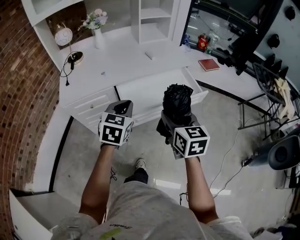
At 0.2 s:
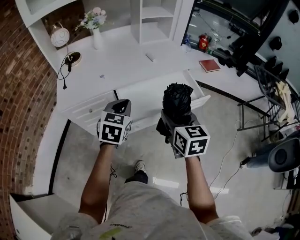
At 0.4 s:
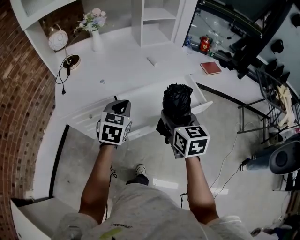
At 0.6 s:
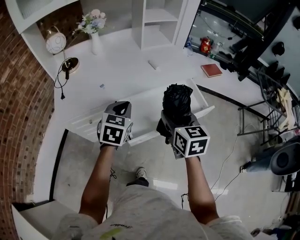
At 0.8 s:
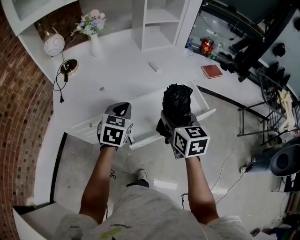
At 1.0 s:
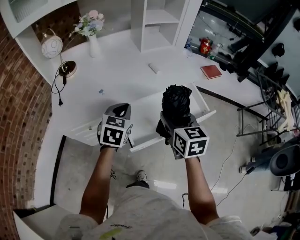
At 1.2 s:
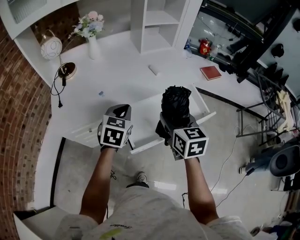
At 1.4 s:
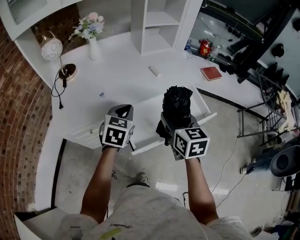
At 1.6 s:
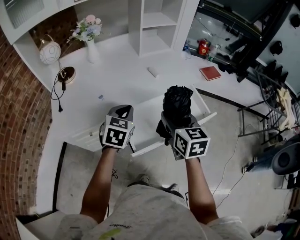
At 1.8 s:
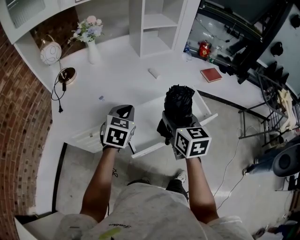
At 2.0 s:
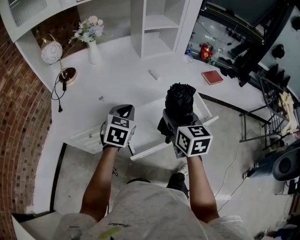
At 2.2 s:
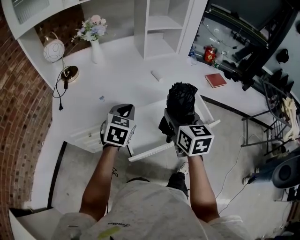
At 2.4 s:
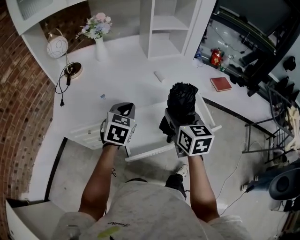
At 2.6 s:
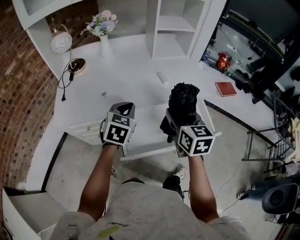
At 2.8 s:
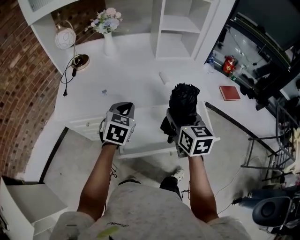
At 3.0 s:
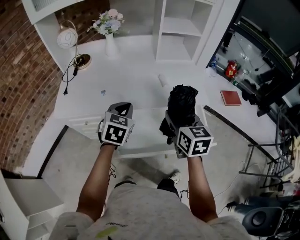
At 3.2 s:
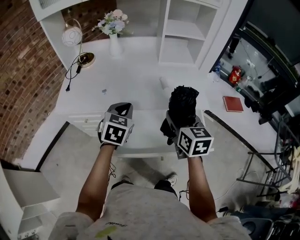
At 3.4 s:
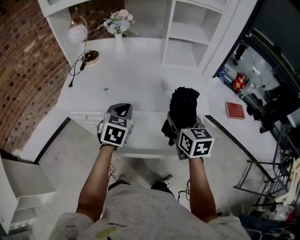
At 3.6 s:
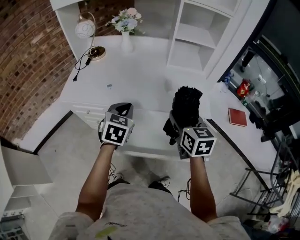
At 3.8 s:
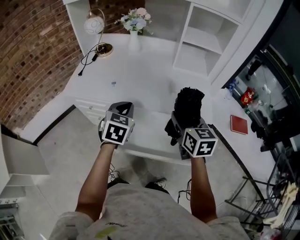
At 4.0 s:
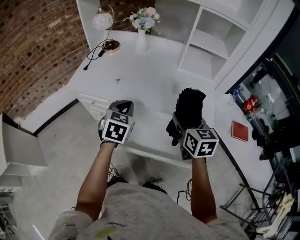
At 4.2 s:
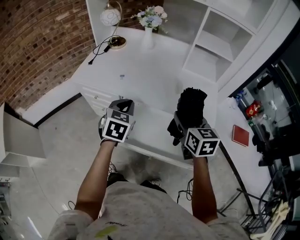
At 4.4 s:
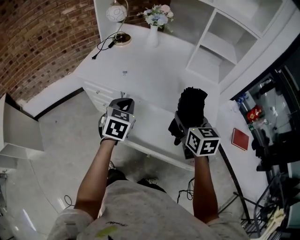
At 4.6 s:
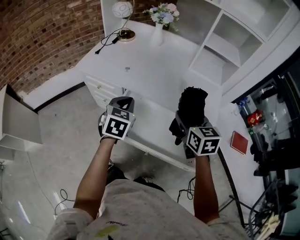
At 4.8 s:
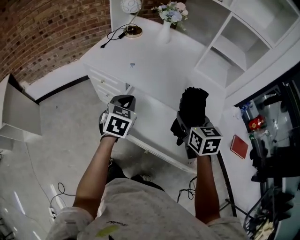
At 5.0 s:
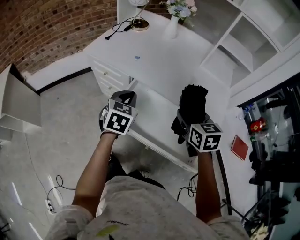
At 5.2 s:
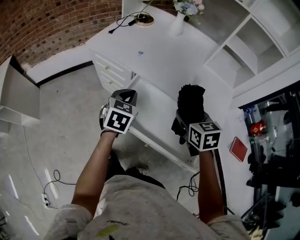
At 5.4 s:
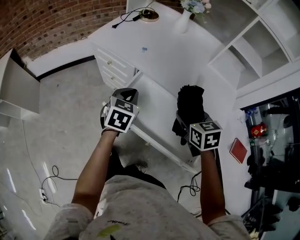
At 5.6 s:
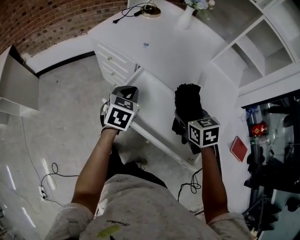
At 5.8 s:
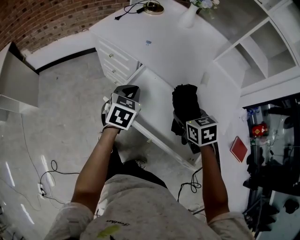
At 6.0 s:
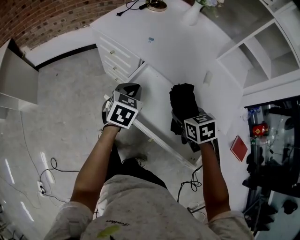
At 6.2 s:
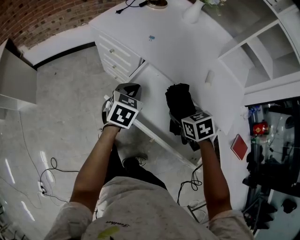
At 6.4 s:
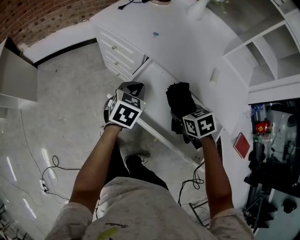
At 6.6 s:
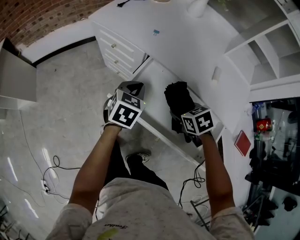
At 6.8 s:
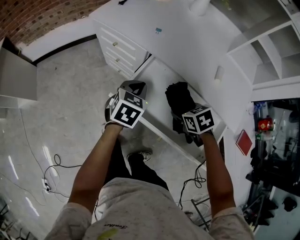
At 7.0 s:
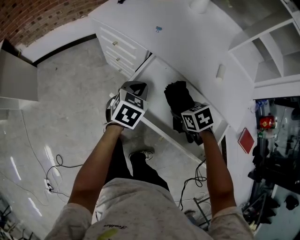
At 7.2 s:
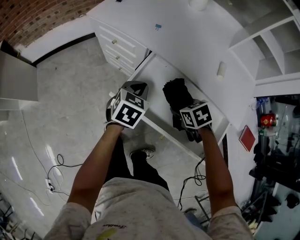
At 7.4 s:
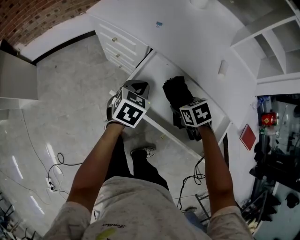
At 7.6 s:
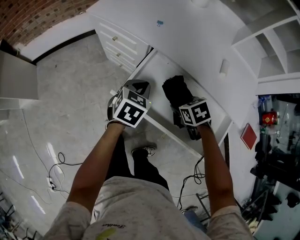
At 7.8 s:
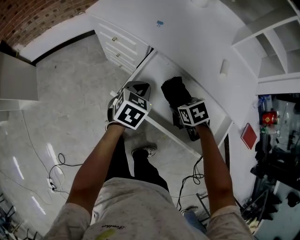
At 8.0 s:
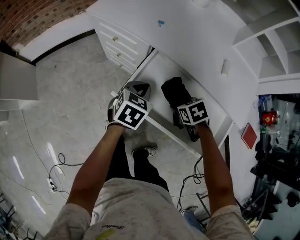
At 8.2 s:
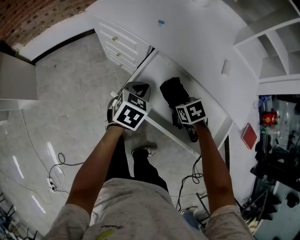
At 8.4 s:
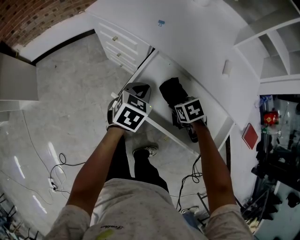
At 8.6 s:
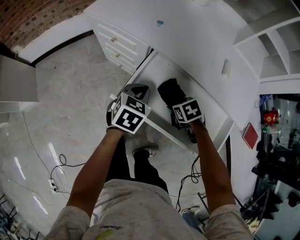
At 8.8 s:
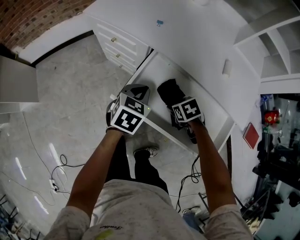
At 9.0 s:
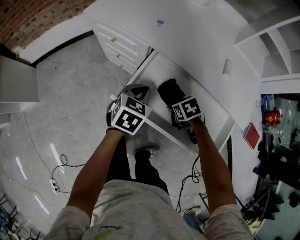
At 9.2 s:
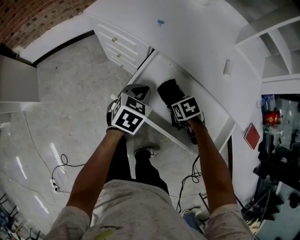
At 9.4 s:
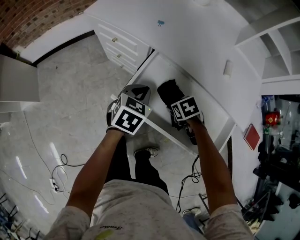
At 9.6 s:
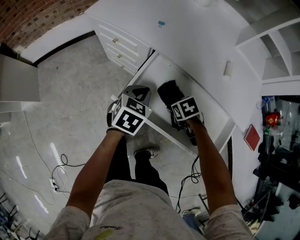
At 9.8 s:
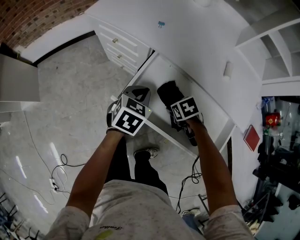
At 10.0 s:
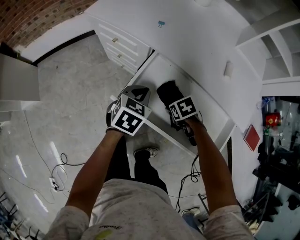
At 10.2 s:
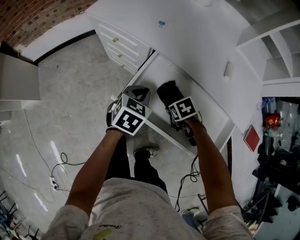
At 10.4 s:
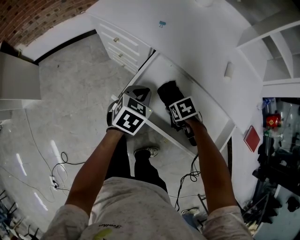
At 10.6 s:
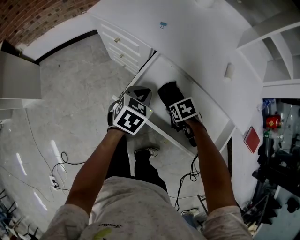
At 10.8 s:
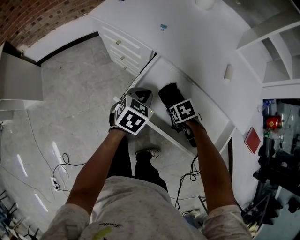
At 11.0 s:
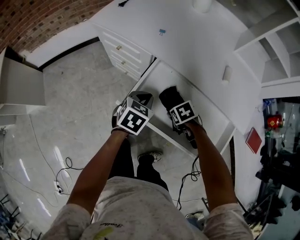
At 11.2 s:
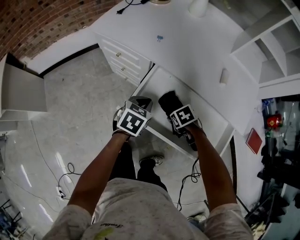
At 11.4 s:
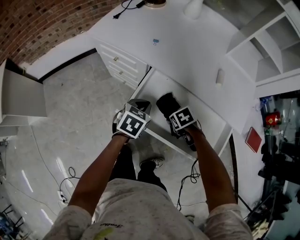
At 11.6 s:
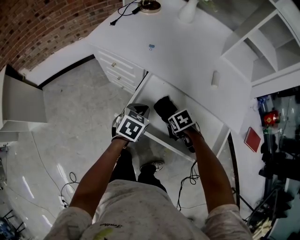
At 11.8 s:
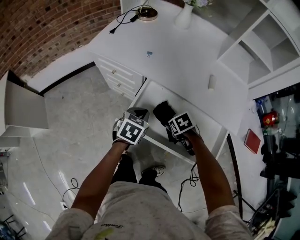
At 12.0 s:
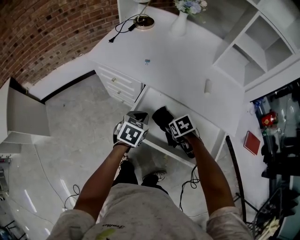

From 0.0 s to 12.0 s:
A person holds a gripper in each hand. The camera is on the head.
From 0.0 s to 1.6 s: Both grippers move forward, roughly 20 cm.
From 1.6 s to 3.0 s: The left gripper changes place by about 5 cm. Meanwhile the right gripper goes roughly 10 cm forward and to the right.
From 3.0 s to 4.4 s: The right gripper moves some 5 cm, and turns by some 30 degrees, while the left gripper rotates some 30 degrees.
From 4.4 s to 6.0 s: The left gripper heads downward, covering approximately 10 cm, while the right gripper heads downward and to the left, covering some 15 cm, and rotates about 40 degrees.
From 6.0 s to 7.6 s: The right gripper shifts some 10 cm downward. The left gripper travels downward by roughly 5 cm.
From 7.6 s to 9.0 s: The right gripper shifts roughly 5 cm downward.
From 9.0 s to 10.4 s: The grippers make only small movements.
From 10.4 s to 12.0 s: The right gripper shifts roughly 10 cm upward.

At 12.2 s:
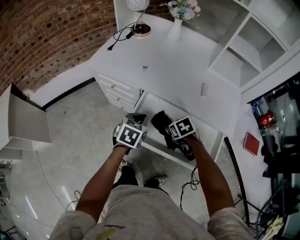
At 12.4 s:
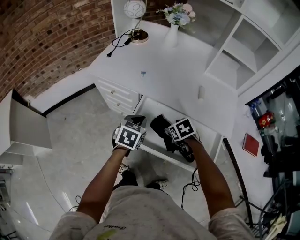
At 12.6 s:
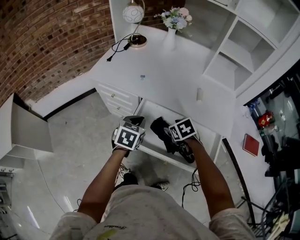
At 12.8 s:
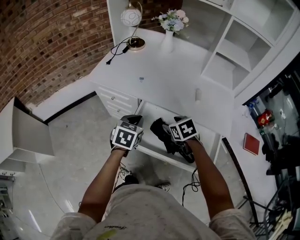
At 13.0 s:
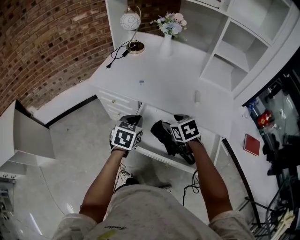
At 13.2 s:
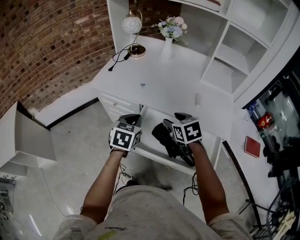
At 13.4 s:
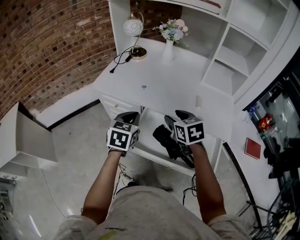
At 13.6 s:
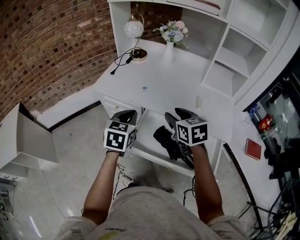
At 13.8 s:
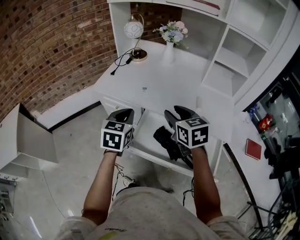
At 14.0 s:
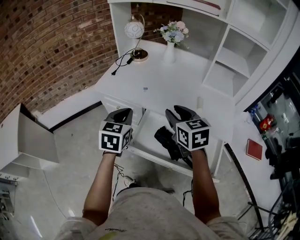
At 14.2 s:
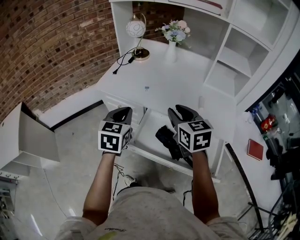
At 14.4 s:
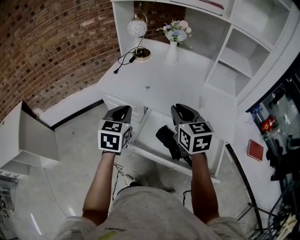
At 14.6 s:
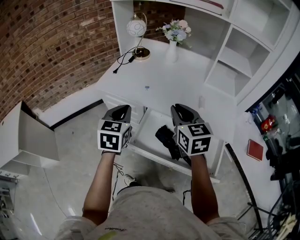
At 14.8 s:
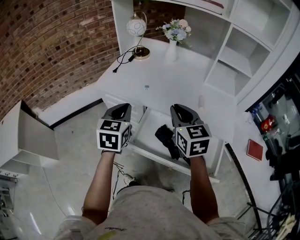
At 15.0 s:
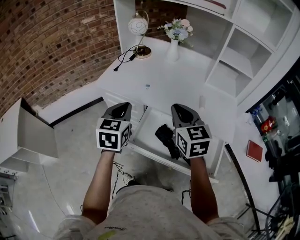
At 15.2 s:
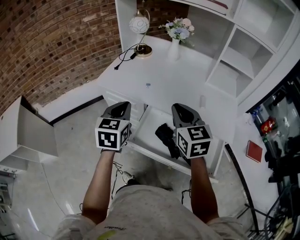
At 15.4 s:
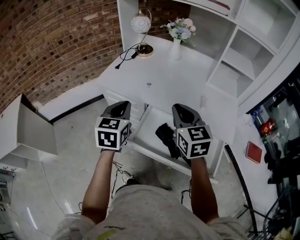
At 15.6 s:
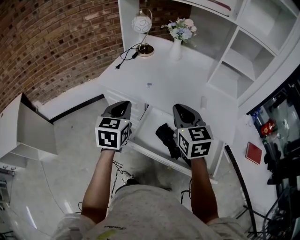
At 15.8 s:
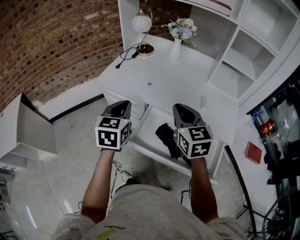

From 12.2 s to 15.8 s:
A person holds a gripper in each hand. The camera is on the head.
From 12.2 s to 14.0 s: The left gripper travels upward and to the left by some 20 cm, and rotates roughly 20 degrees. The right gripper travels upward by roughly 25 cm, angles its fingers upward, by some 40 degrees, and closes up.
From 14.0 s to 15.8 s: The right gripper closes.

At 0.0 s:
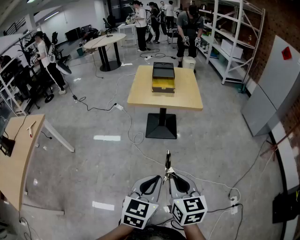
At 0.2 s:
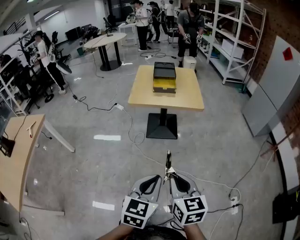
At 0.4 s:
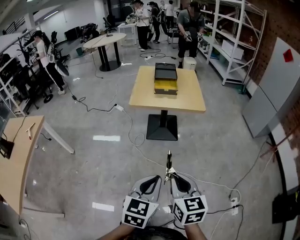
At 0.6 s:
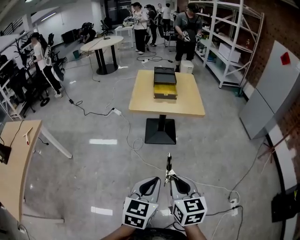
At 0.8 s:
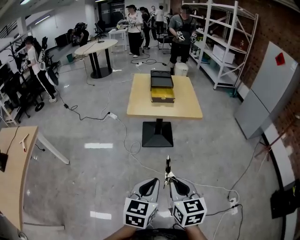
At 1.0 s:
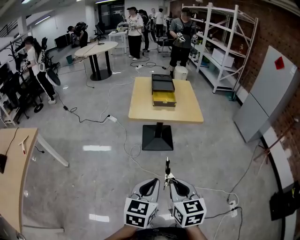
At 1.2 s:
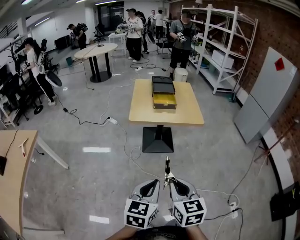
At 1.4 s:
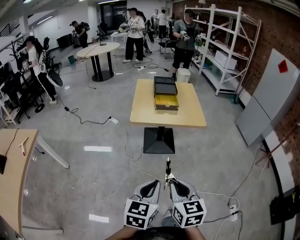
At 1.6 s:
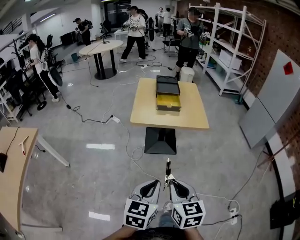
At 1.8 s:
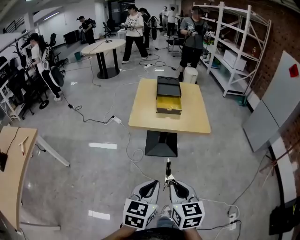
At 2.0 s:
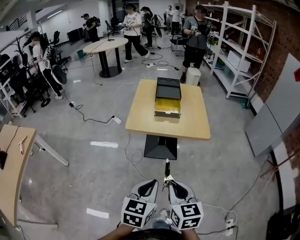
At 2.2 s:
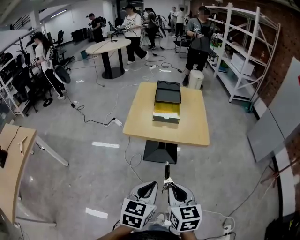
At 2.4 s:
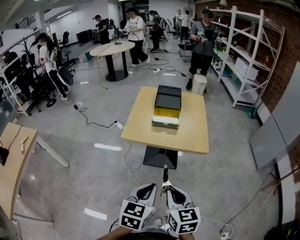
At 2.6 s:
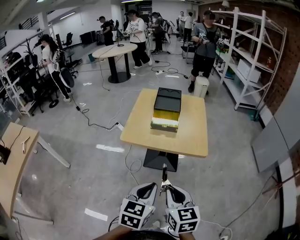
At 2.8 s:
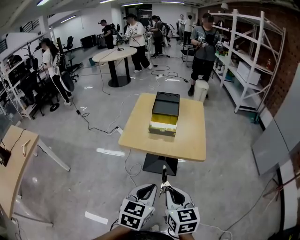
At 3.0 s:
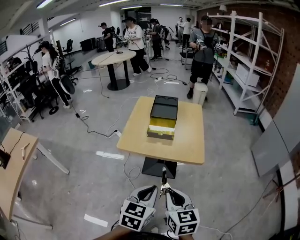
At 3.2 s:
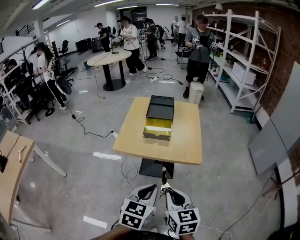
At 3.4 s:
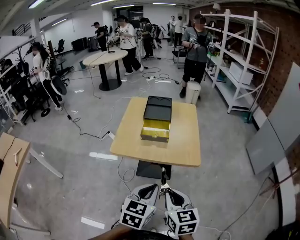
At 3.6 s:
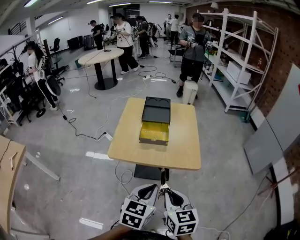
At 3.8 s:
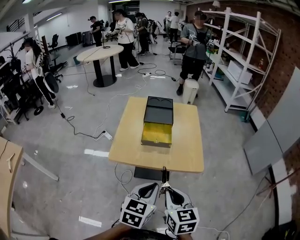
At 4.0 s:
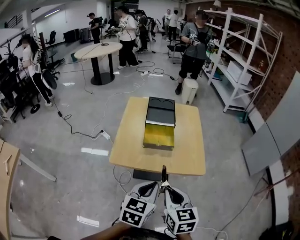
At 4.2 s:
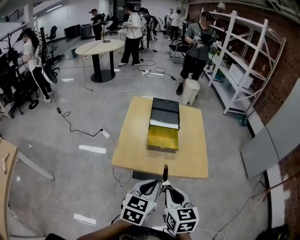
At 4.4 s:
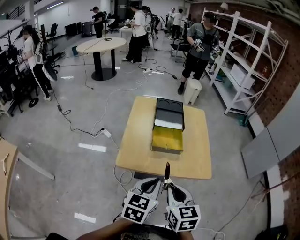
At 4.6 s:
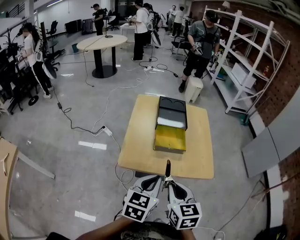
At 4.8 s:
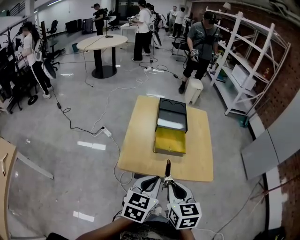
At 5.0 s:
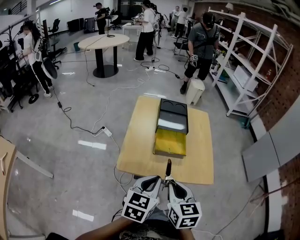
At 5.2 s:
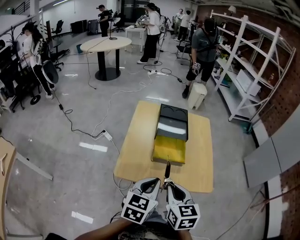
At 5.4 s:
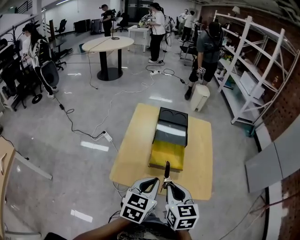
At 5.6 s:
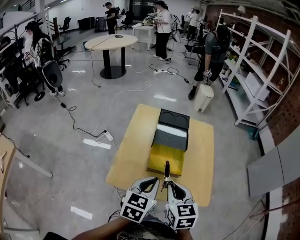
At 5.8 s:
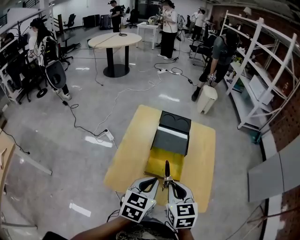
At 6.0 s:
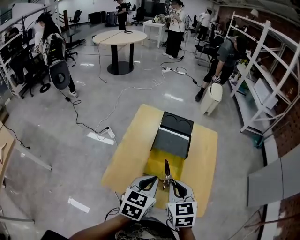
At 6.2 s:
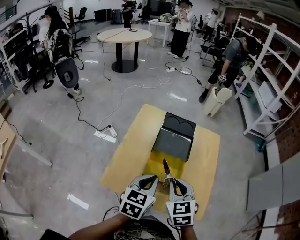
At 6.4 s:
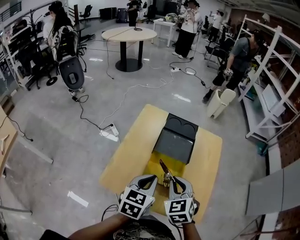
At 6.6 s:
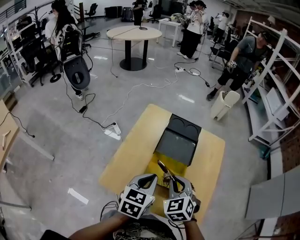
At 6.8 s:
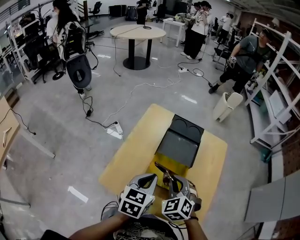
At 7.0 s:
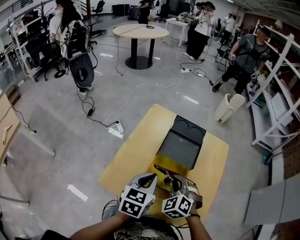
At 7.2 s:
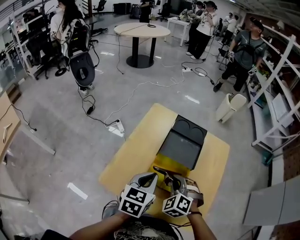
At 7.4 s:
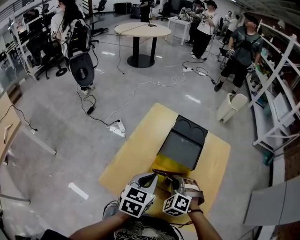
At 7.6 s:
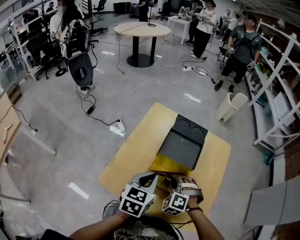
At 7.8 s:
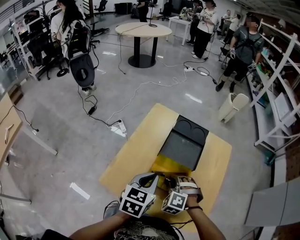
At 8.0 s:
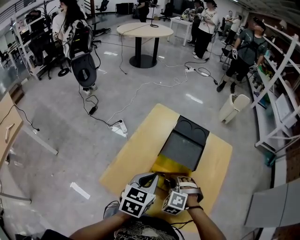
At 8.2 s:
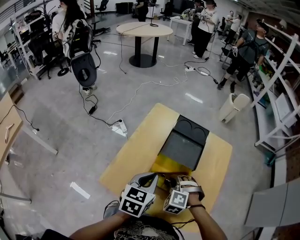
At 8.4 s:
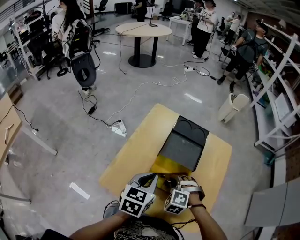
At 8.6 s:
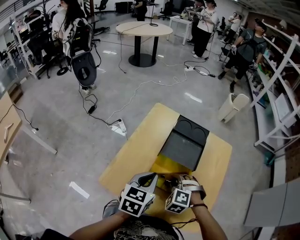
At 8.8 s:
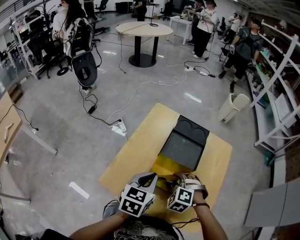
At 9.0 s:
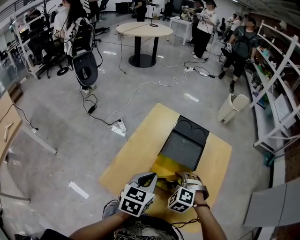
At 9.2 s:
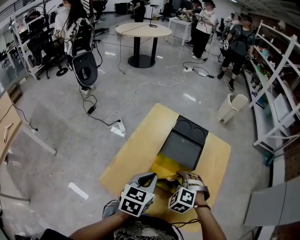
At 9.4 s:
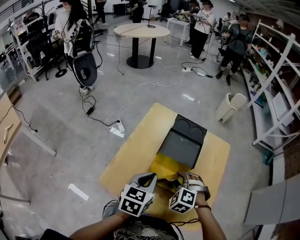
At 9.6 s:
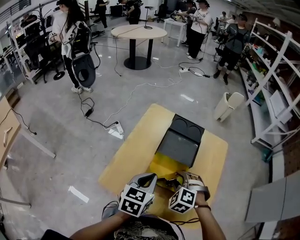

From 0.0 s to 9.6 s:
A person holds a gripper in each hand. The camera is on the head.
From 0.0 s to 1.6 s: The two grippers go some 40 cm forward and to the left.
From 1.6 s to 3.2 s: The pair of grippers is taken forward and to the right, approximately 70 cm.
From 3.2 s to 4.8 s: Both grippers are carried to the left and forward, about 70 cm.
From 4.8 s to 6.4 s: The pair of grippers is taken forward, roughly 70 cm. The right gripper swivels about 40 degrees.
From 6.4 s to 8.0 s: The left gripper shifts about 15 cm forward, to the left and downward. Meanwhile the right gripper is displaced downward and forward by approximately 20 cm, and rolls counterclockwise, seen from behind, by approximately 50 degrees.
From 8.0 s to 9.6 s: The left gripper moves backward, some 5 cm, while the right gripper heads upward, to the right and backward, covering approximately 10 cm, and opens.
